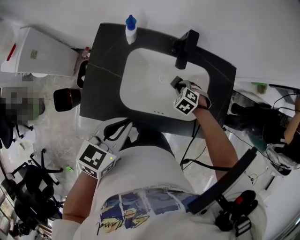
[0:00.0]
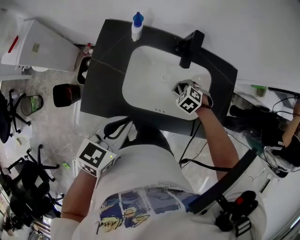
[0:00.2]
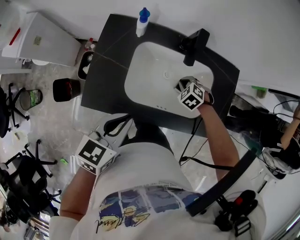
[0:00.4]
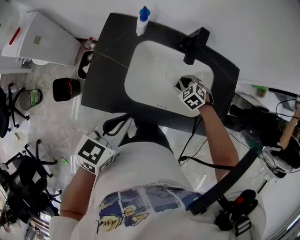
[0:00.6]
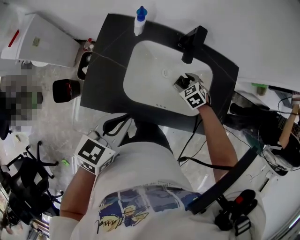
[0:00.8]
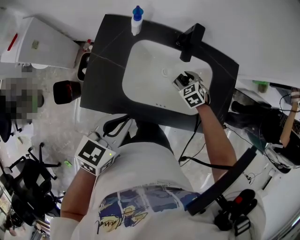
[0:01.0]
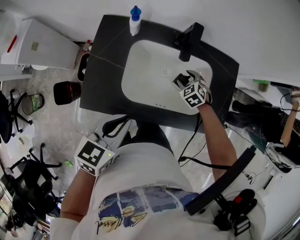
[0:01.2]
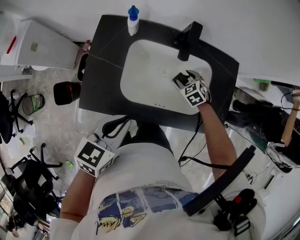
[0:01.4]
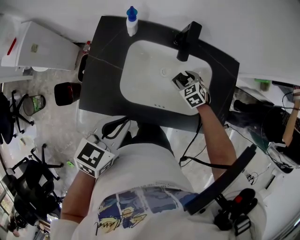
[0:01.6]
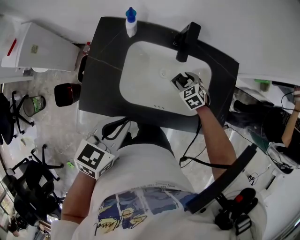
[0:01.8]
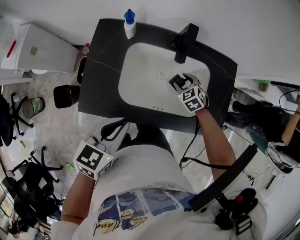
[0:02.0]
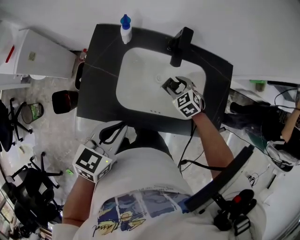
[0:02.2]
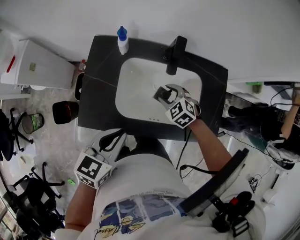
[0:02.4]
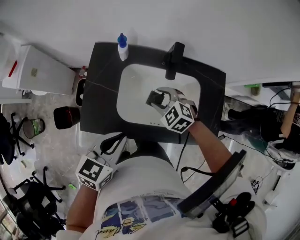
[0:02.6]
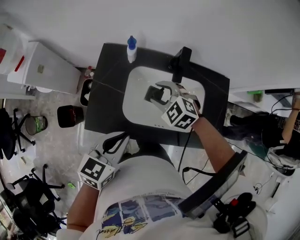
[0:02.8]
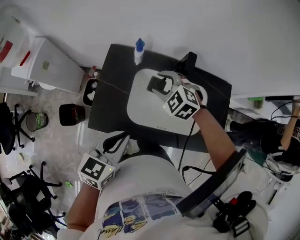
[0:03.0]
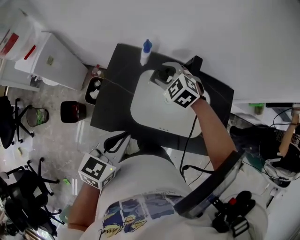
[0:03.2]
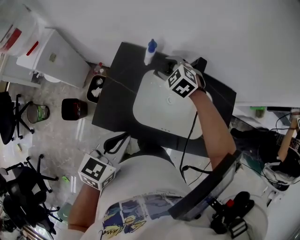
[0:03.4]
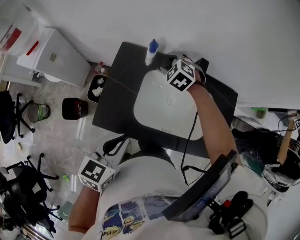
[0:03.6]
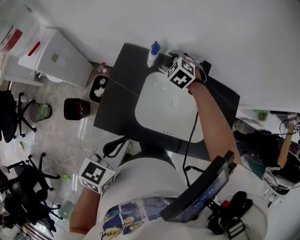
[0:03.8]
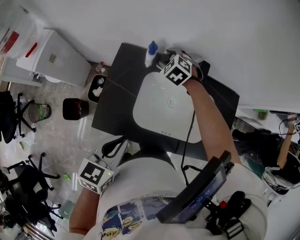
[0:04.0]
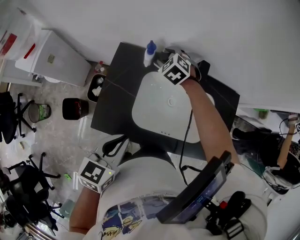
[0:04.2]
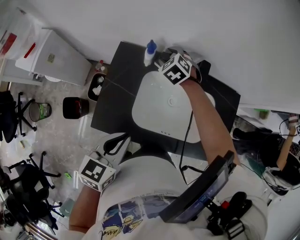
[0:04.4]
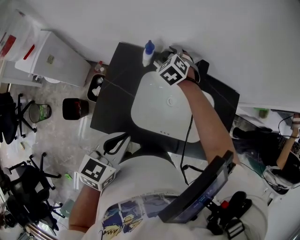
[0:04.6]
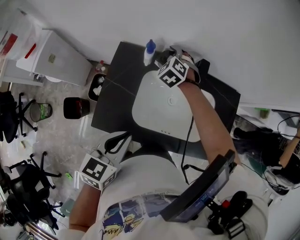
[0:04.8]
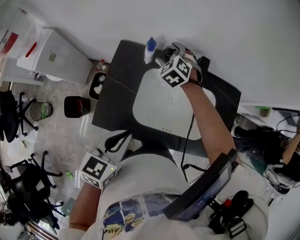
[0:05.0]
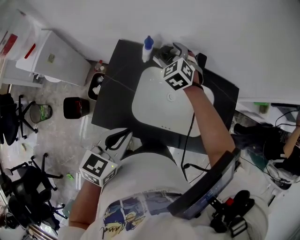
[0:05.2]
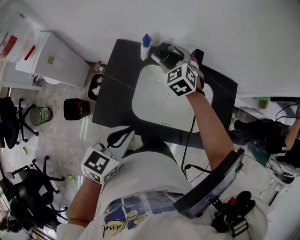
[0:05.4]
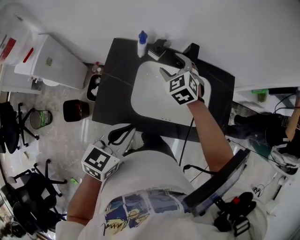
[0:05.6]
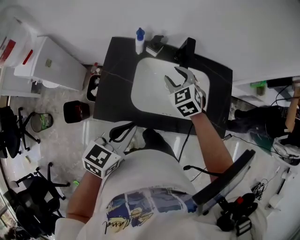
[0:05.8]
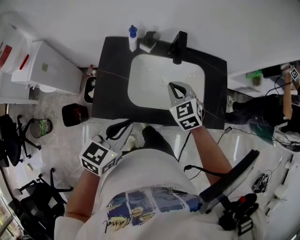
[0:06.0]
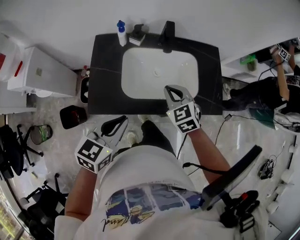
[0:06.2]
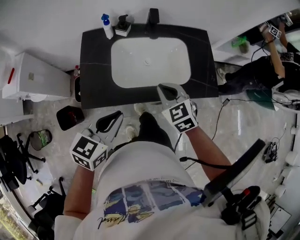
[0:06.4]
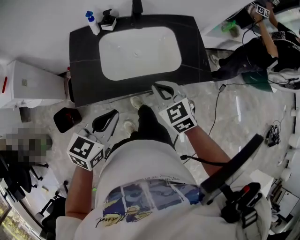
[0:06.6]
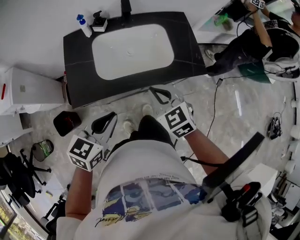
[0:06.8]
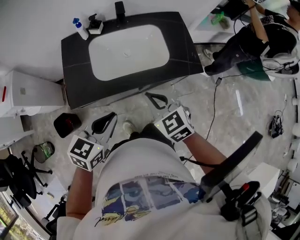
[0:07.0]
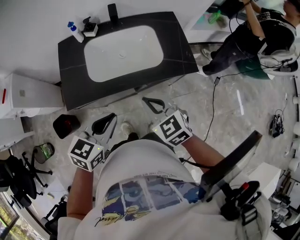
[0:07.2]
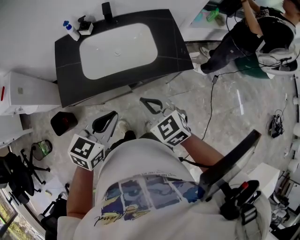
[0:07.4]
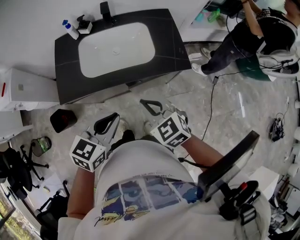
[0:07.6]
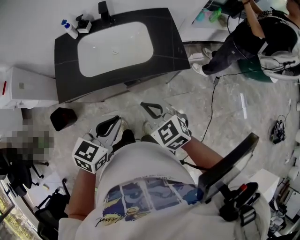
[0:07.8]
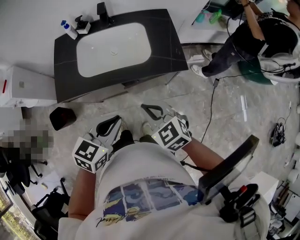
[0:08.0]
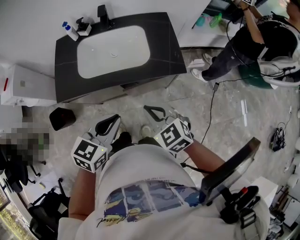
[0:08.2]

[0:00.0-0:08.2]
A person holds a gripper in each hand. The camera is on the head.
0:00.0 to 0:01.6: The right gripper rotates about 20 degrees, and opens.
0:01.6 to 0:03.2: The right gripper goes roughly 30 cm to the left and upward, and turns by roughly 30 degrees; the left gripper changes place by some 5 cm.
0:03.2 to 0:05.0: The right gripper heads forward, covering roughly 10 cm.
0:05.0 to 0:06.6: The right gripper is displaced backward and to the right by some 40 cm, swivels some 40 degrees, and closes, while the left gripper is displaced backward by roughly 15 cm, and swivels about 30 degrees.
0:06.6 to 0:08.2: The left gripper moves to the right, some 20 cm, while the right gripper shifts some 20 cm to the right and backward.

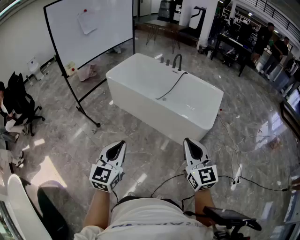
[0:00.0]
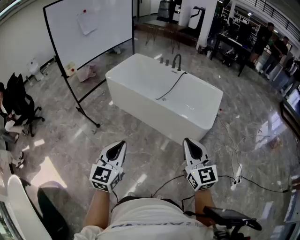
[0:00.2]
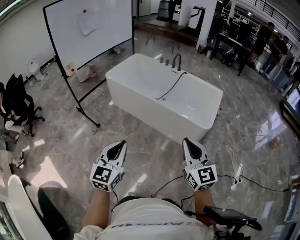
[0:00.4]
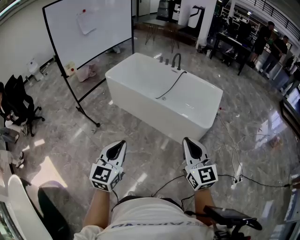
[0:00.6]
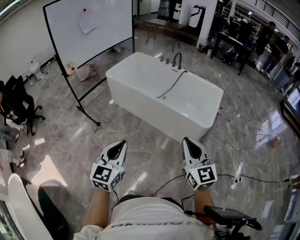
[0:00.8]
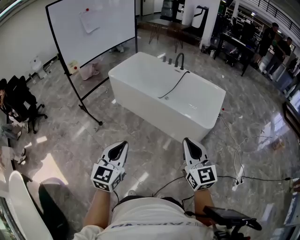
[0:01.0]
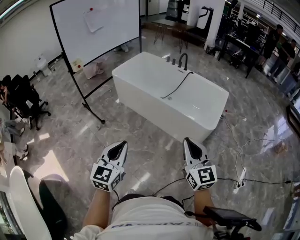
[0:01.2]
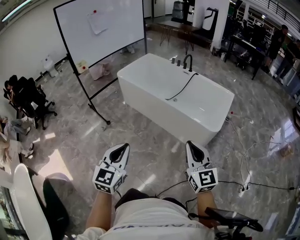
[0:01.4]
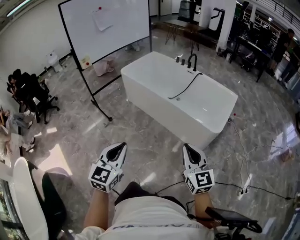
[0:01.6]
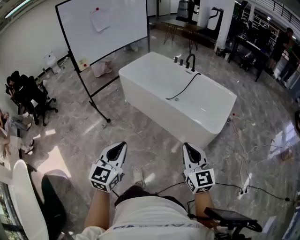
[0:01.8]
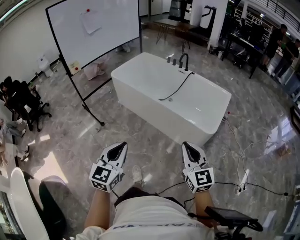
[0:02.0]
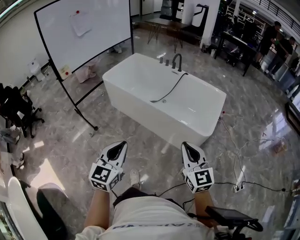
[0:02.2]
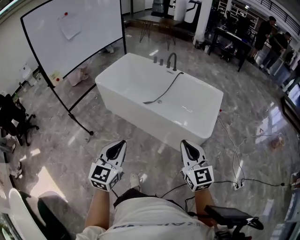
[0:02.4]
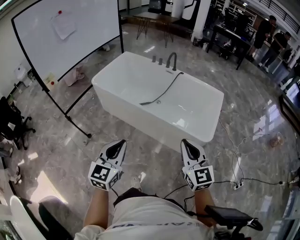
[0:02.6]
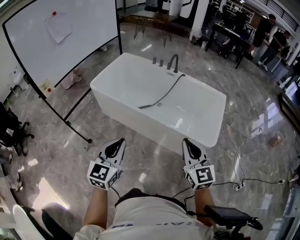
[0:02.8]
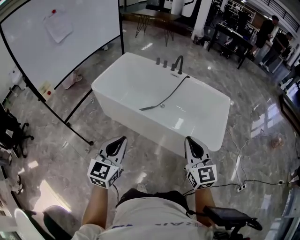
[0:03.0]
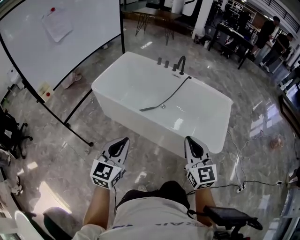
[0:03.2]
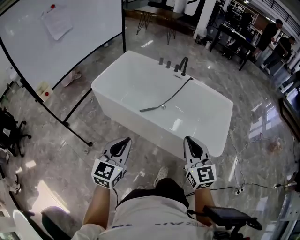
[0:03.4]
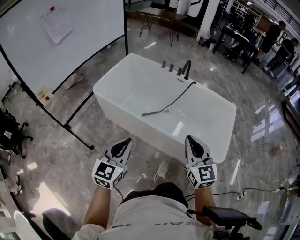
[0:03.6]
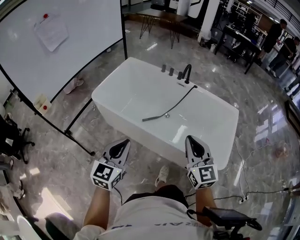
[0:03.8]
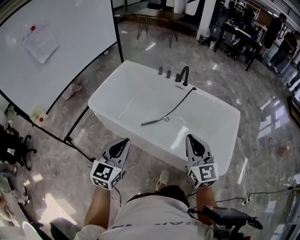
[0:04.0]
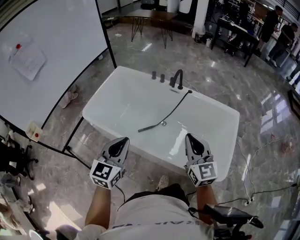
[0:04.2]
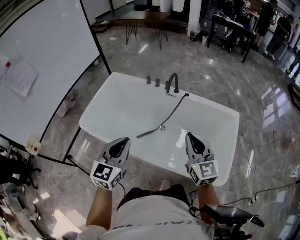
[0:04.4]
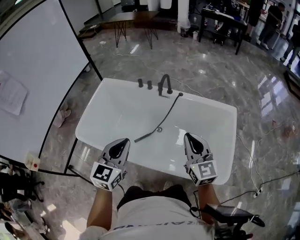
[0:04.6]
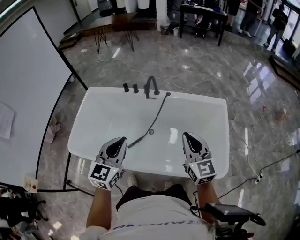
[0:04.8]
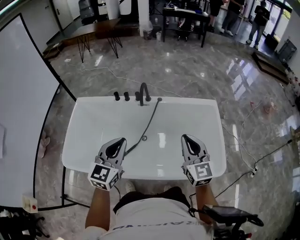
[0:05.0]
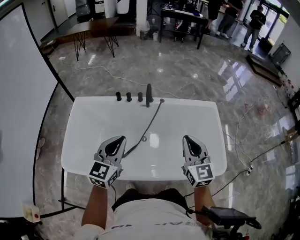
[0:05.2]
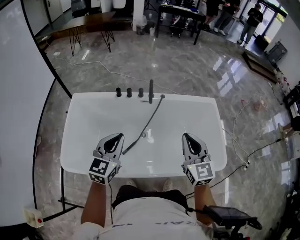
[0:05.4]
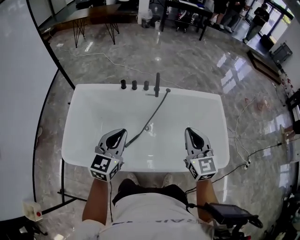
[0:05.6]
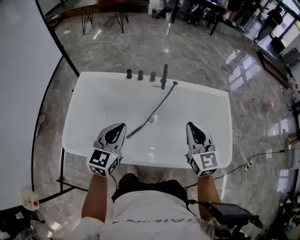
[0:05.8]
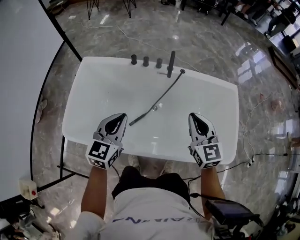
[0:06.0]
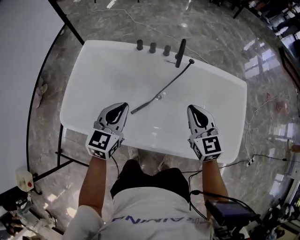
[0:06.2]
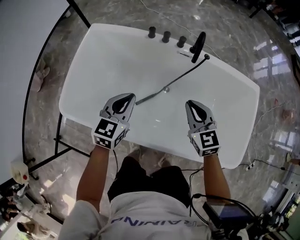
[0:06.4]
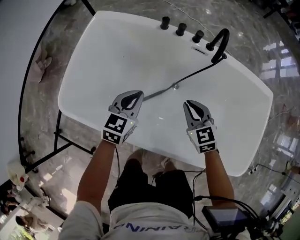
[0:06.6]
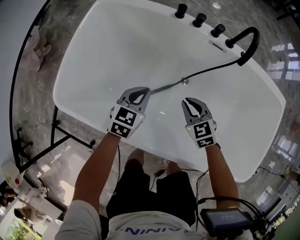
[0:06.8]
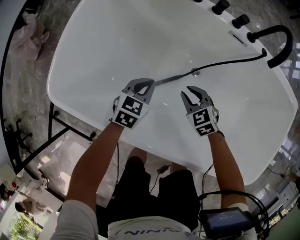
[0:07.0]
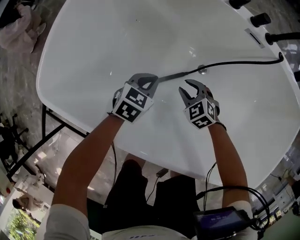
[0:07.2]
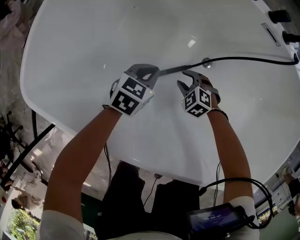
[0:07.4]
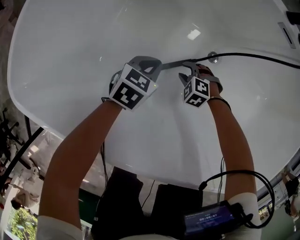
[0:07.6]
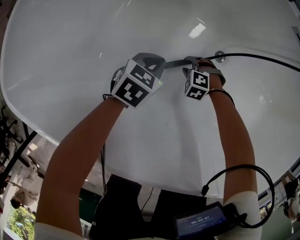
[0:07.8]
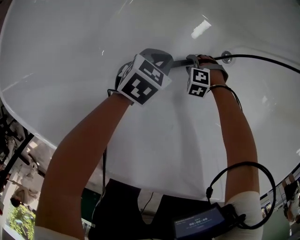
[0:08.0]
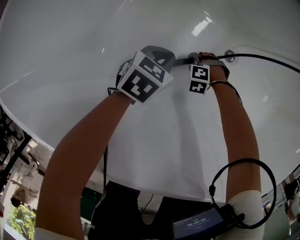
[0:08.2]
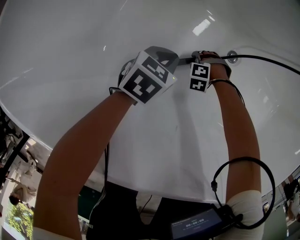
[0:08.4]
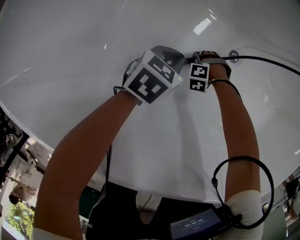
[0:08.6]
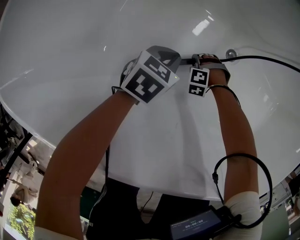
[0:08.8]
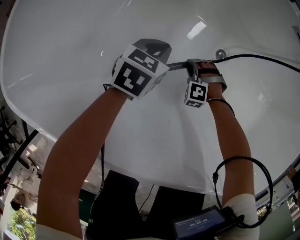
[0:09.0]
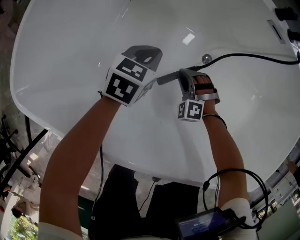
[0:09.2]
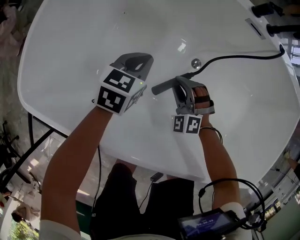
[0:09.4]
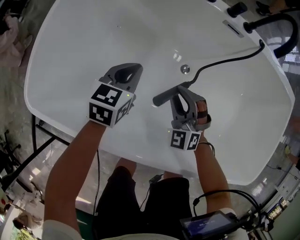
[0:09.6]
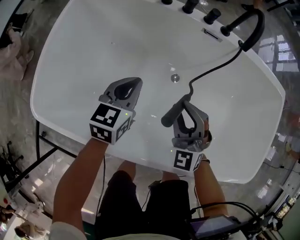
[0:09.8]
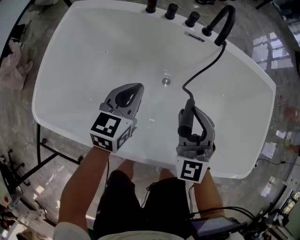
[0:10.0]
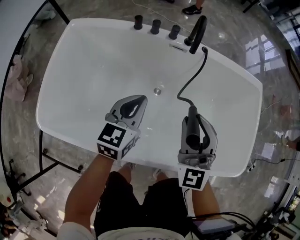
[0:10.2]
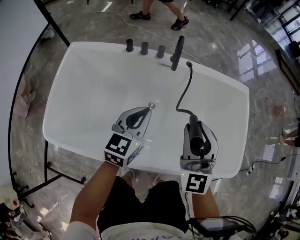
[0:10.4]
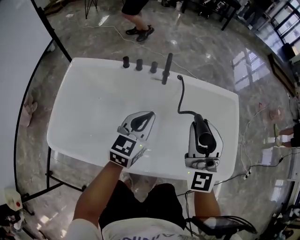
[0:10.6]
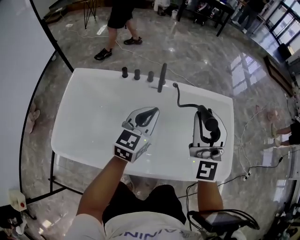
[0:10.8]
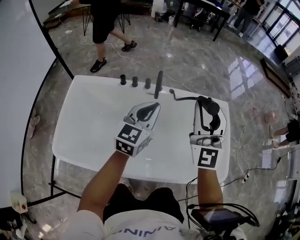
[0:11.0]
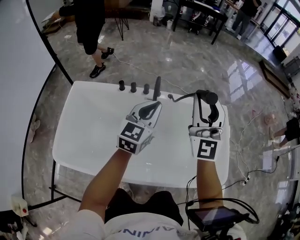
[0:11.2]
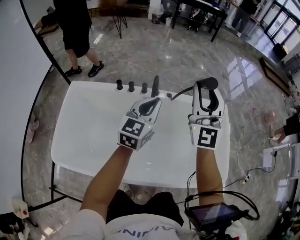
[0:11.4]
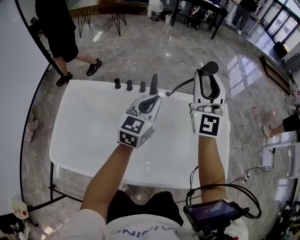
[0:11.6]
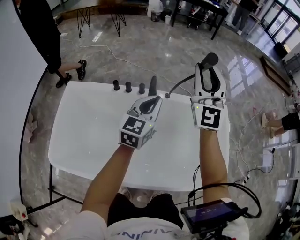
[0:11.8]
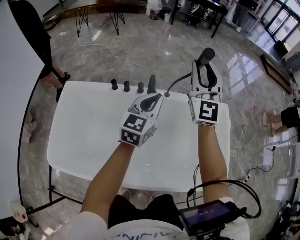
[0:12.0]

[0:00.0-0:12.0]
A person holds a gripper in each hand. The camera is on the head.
0:00.0 to 0:01.6: The right gripper heads downward, covering about 5 cm.
0:01.6 to 0:03.0: Both grippers travel together forward, about 40 cm.
0:03.0 to 0:04.4: The pair of grippers is taken forward, about 40 cm.
0:04.4 to 0:06.0: The right gripper heads to the left, forward and downward, covering roughly 20 cm, while the left gripper is displaced forward, to the left and downward by about 25 cm.
0:06.0 to 0:07.6: The two grippers go approximately 70 cm downward. The right gripper angles its fingers downward, by roughly 50 degrees, and opens. Meanwhile the left gripper tips its fingers downward by approximately 30 degrees.
0:07.6 to 0:09.0: The right gripper reaches roughly 15 cm downward, then returns, and turns by some 30 degrees.
0:09.0 to 0:10.4: The right gripper shifts approximately 80 cm upward, and tilts its fingers approximately 70 degrees upward. Meanwhile the left gripper shifts roughly 60 cm upward and to the right, and rotates some 30 degrees.
0:10.4 to 0:12.0: The right gripper heads forward and upward, covering roughly 35 cm. The left gripper is displaced forward, upward and to the right by some 25 cm.

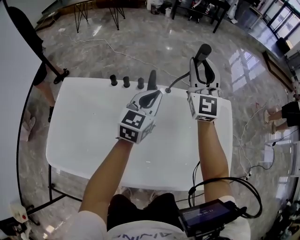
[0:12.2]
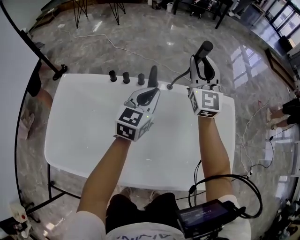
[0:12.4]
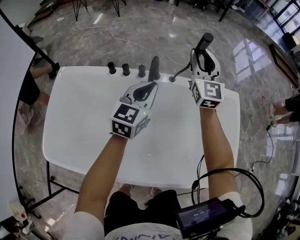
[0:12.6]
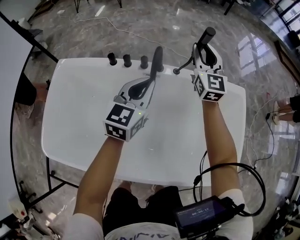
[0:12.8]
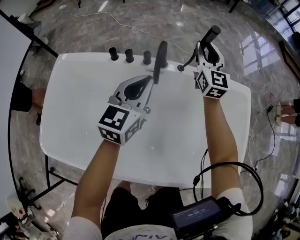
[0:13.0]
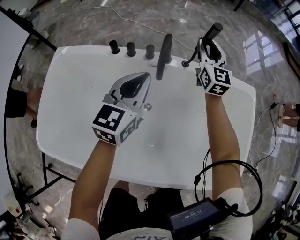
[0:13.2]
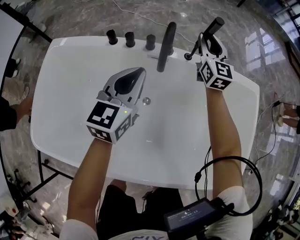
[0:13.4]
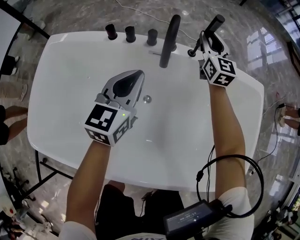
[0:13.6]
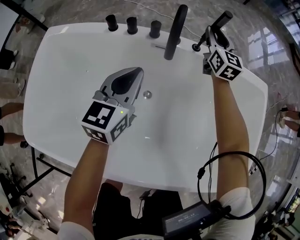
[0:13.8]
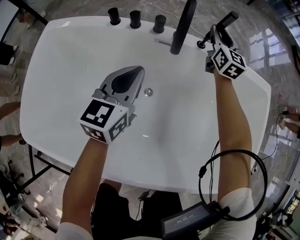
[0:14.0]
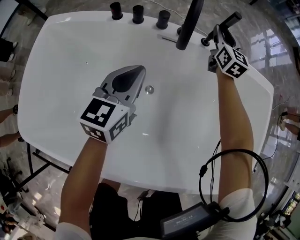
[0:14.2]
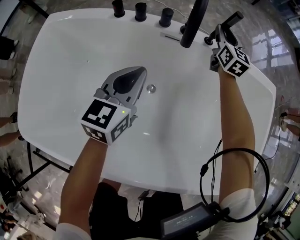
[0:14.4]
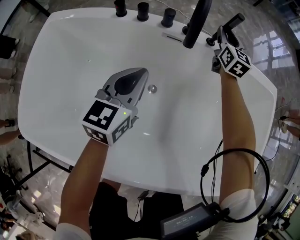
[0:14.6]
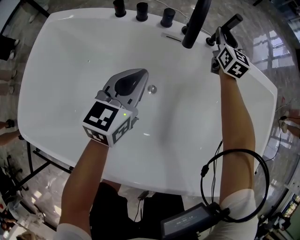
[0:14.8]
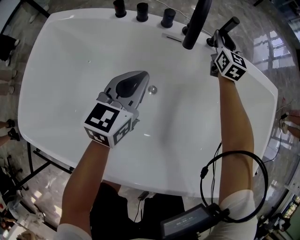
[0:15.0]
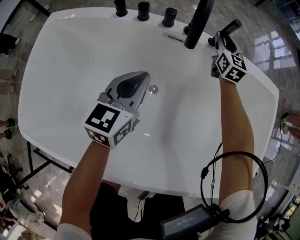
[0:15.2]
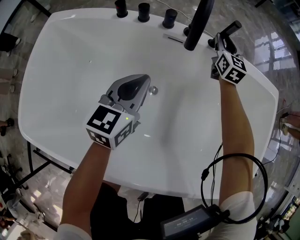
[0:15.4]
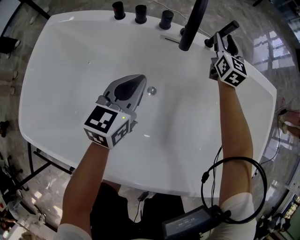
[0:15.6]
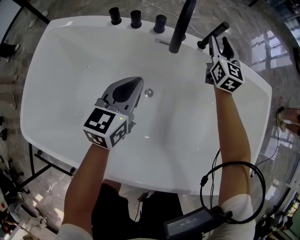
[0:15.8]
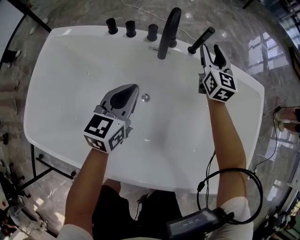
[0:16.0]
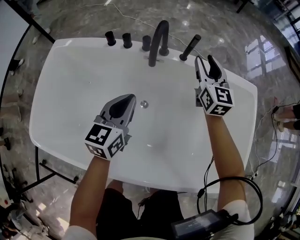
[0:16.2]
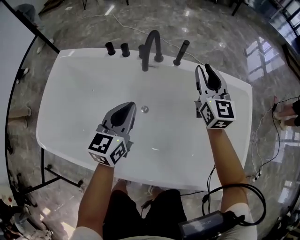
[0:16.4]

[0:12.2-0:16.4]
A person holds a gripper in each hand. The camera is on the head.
0:12.2 to 0:13.6: The right gripper moves downward and forward, some 40 cm, and rotates some 30 degrees, while the left gripper is displaced downward and to the left by roughly 25 cm.
0:13.6 to 0:15.0: Both grippers travel together downward, roughly 10 cm.
0:15.0 to 0:16.4: The right gripper is displaced upward and backward by roughly 30 cm. The left gripper goes approximately 15 cm upward, backward and to the right.
